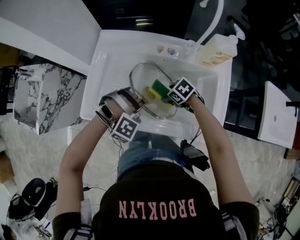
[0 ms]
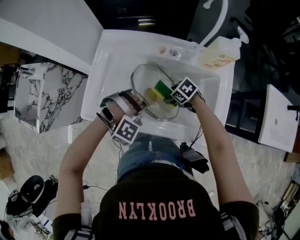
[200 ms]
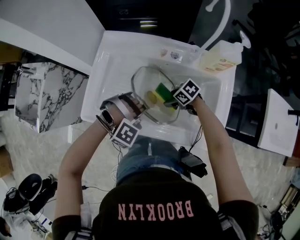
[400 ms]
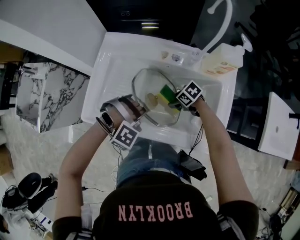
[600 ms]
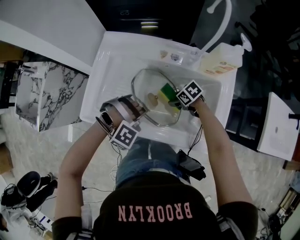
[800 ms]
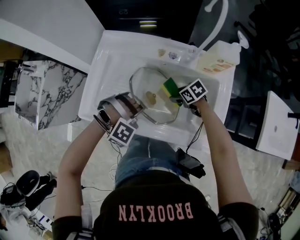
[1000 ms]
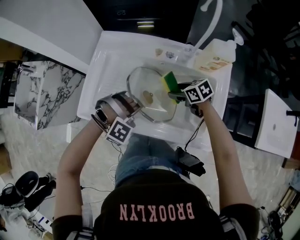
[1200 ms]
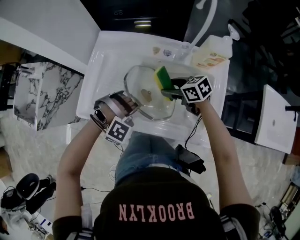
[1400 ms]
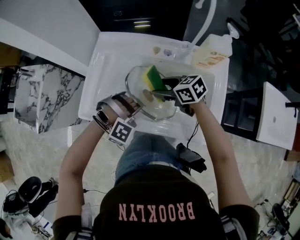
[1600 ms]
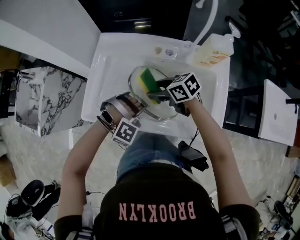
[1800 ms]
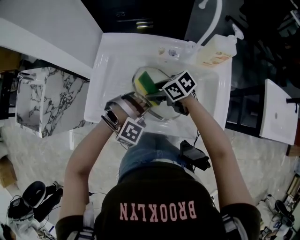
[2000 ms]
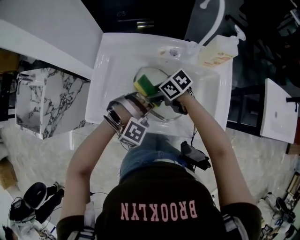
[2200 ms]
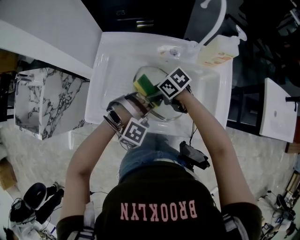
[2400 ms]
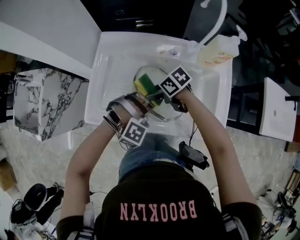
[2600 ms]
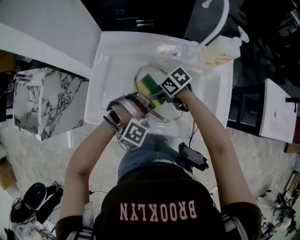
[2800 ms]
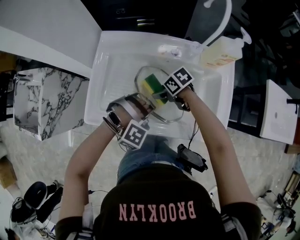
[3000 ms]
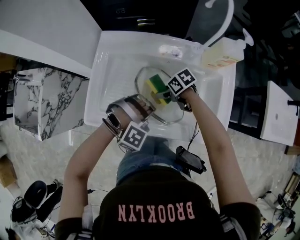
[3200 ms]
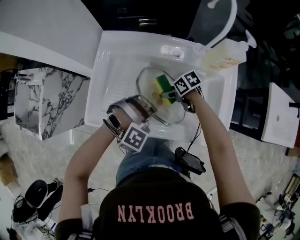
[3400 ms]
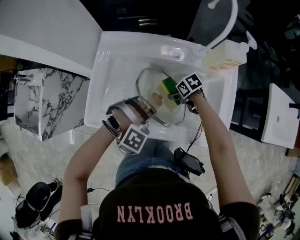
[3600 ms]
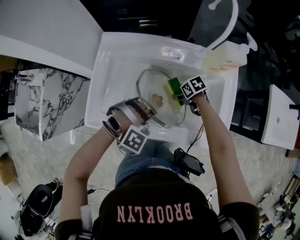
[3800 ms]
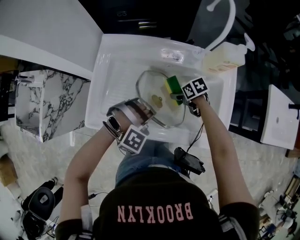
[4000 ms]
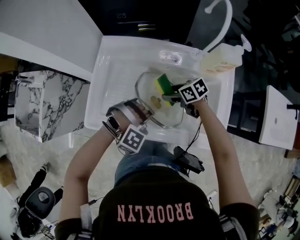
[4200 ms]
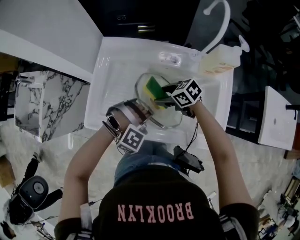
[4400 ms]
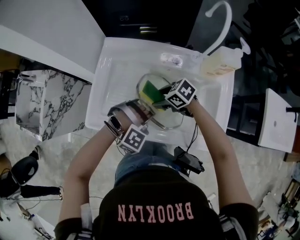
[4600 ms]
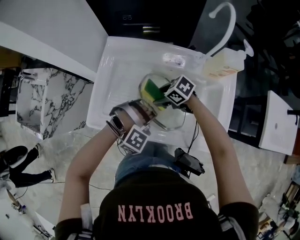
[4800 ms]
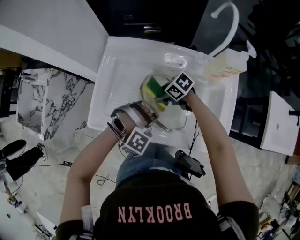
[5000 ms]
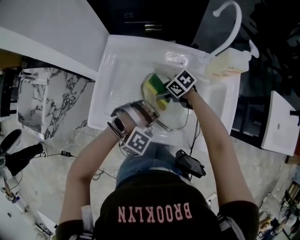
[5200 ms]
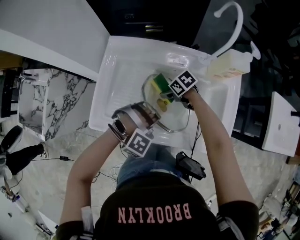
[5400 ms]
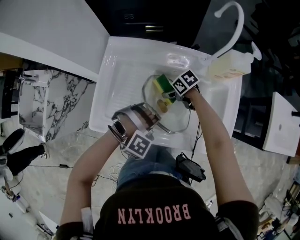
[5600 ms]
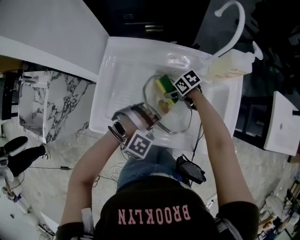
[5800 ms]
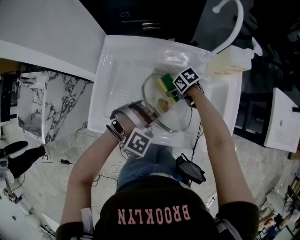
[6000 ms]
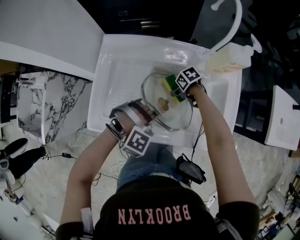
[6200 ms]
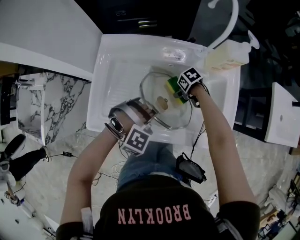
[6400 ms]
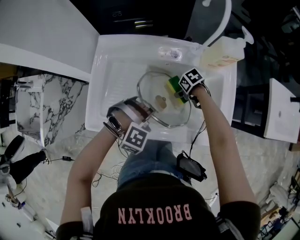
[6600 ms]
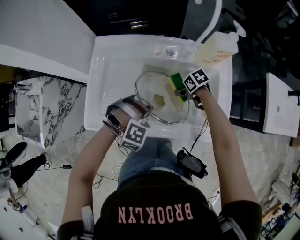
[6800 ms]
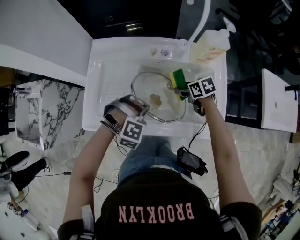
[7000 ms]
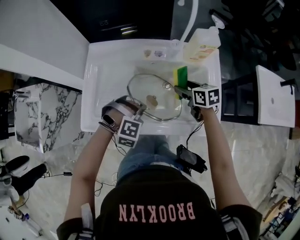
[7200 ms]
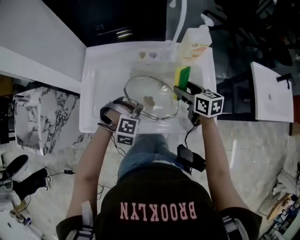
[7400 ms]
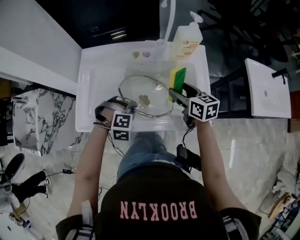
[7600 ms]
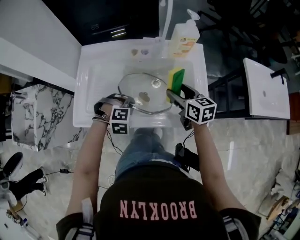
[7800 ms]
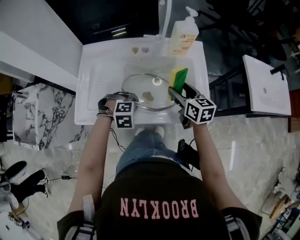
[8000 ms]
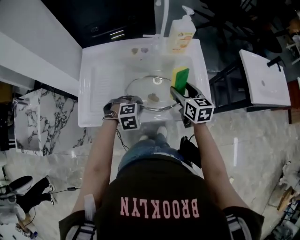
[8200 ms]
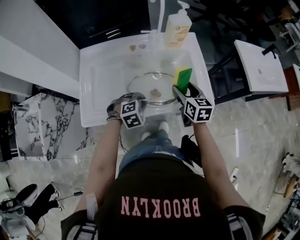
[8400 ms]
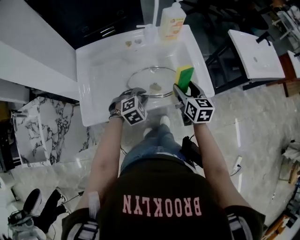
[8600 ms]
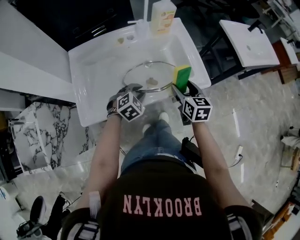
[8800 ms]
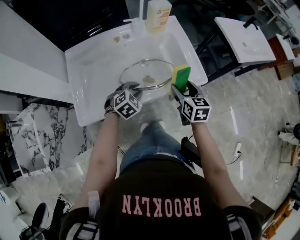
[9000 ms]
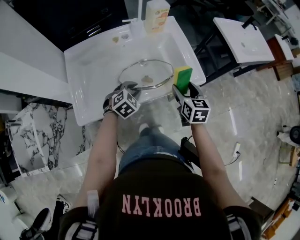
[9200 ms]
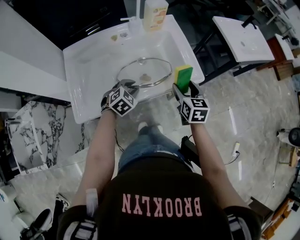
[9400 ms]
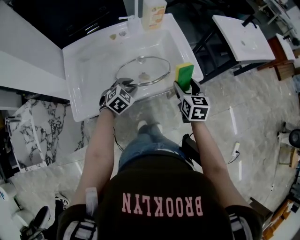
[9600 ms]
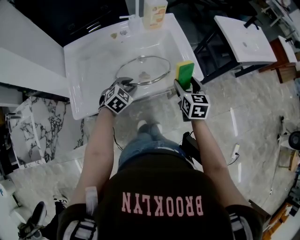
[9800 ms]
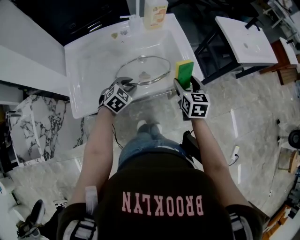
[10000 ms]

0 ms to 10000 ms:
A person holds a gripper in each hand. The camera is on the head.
0 ms to 1400 ms: The right gripper goes roughly 10 cm upward, and changes its angle by roughly 30 degrees.
1400 ms to 2800 ms: The right gripper moves roughly 10 cm, and swivels approximately 20 degrees.
2800 ms to 4200 ms: The right gripper moves approximately 10 cm downward and comes back.
4200 ms to 5800 ms: The right gripper moves downward, some 5 cm.
5800 ms to 7200 ms: The right gripper ends up about 20 cm from where it was, and rotates roughly 40 degrees.
7200 ms to 8600 ms: The right gripper changes place by about 20 cm, and turns by about 40 degrees.
8600 ms to 10000 ms: The right gripper changes place by roughly 10 cm.

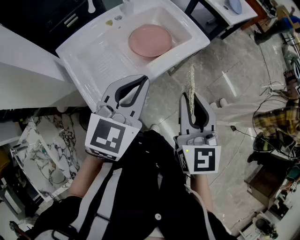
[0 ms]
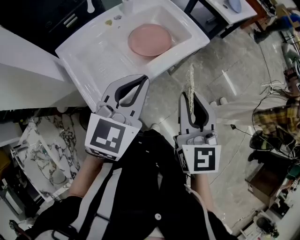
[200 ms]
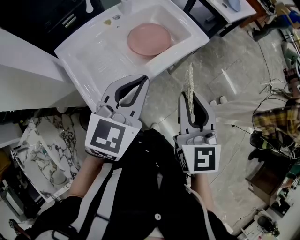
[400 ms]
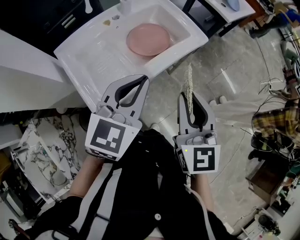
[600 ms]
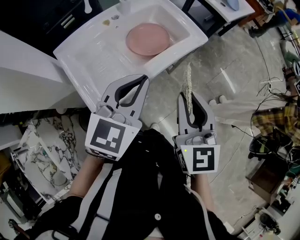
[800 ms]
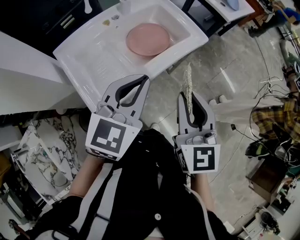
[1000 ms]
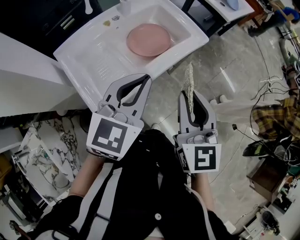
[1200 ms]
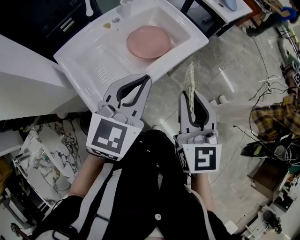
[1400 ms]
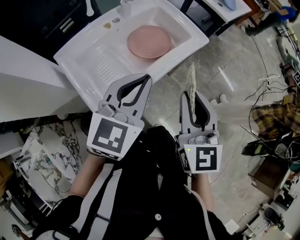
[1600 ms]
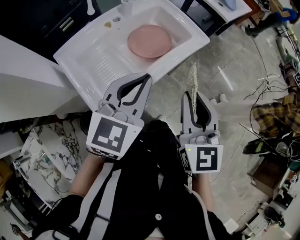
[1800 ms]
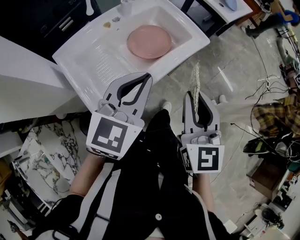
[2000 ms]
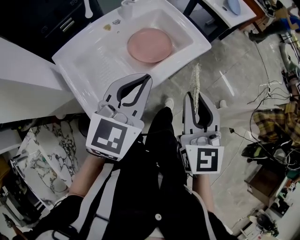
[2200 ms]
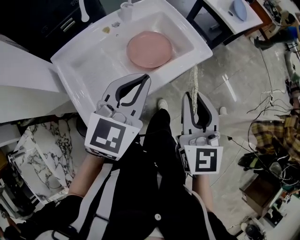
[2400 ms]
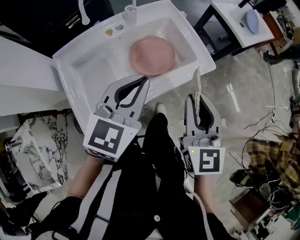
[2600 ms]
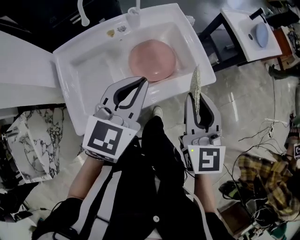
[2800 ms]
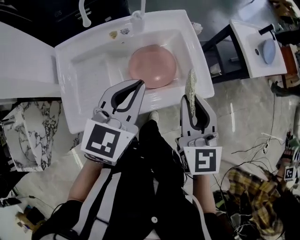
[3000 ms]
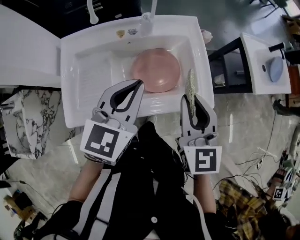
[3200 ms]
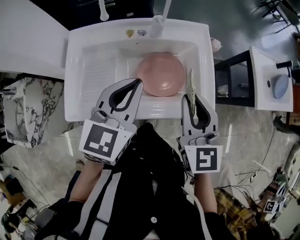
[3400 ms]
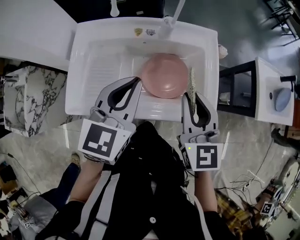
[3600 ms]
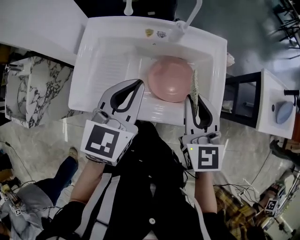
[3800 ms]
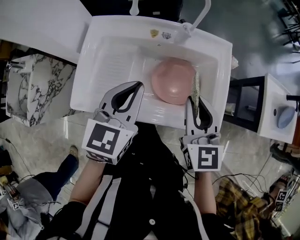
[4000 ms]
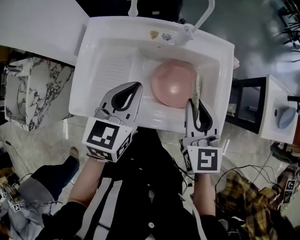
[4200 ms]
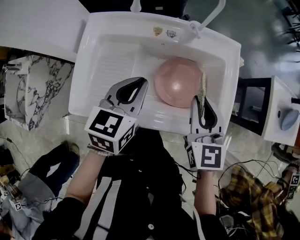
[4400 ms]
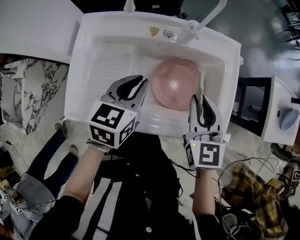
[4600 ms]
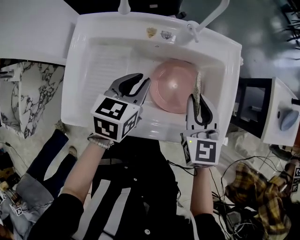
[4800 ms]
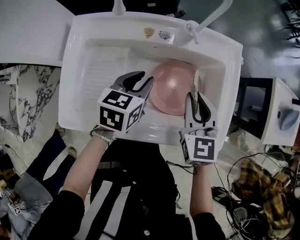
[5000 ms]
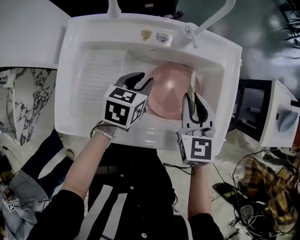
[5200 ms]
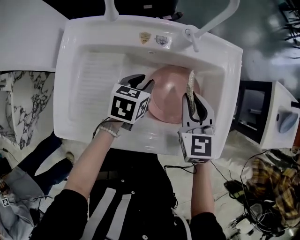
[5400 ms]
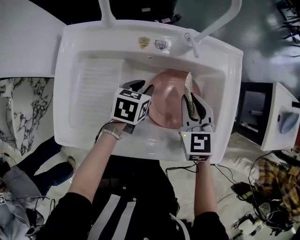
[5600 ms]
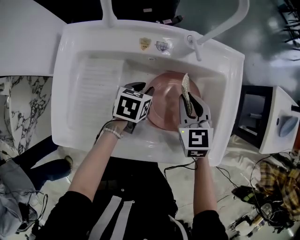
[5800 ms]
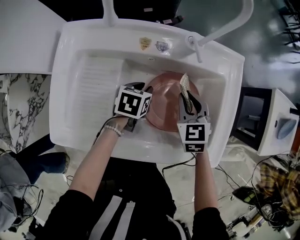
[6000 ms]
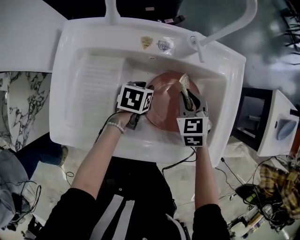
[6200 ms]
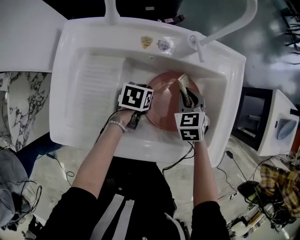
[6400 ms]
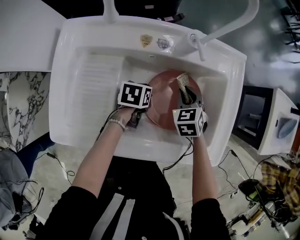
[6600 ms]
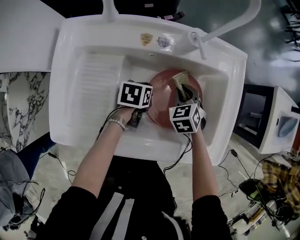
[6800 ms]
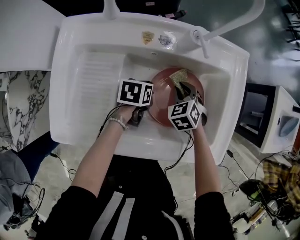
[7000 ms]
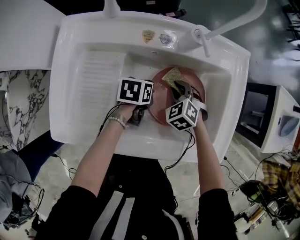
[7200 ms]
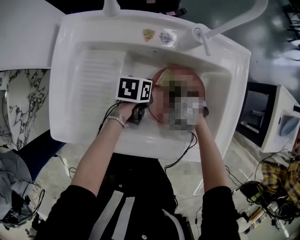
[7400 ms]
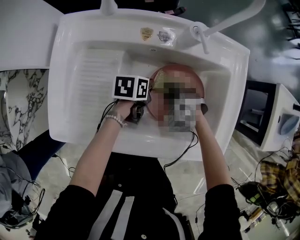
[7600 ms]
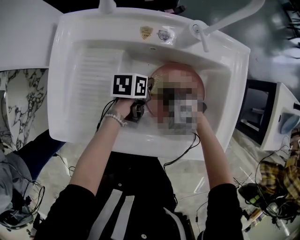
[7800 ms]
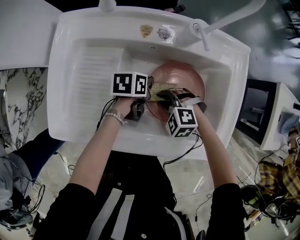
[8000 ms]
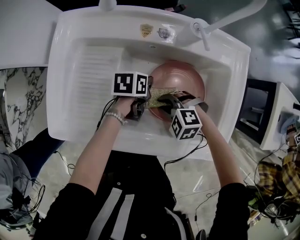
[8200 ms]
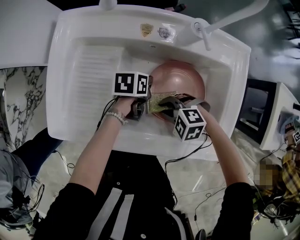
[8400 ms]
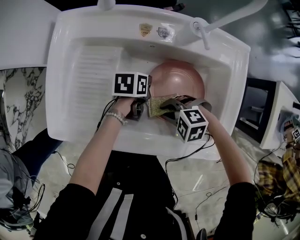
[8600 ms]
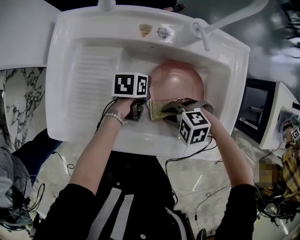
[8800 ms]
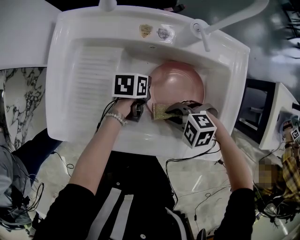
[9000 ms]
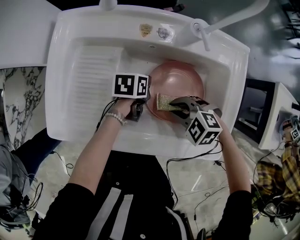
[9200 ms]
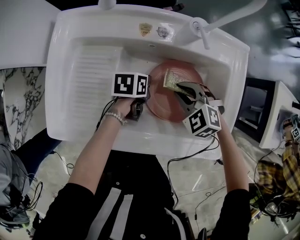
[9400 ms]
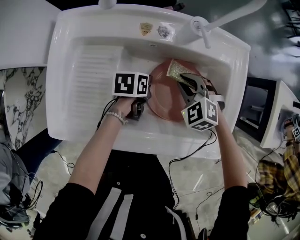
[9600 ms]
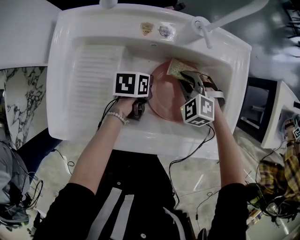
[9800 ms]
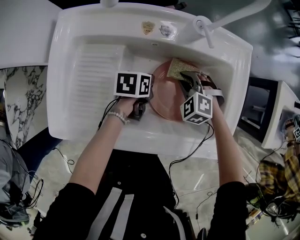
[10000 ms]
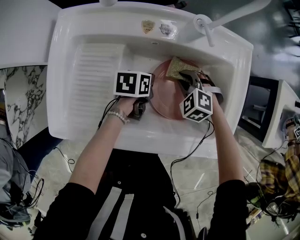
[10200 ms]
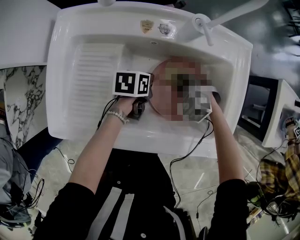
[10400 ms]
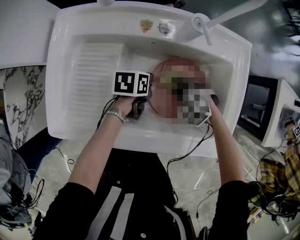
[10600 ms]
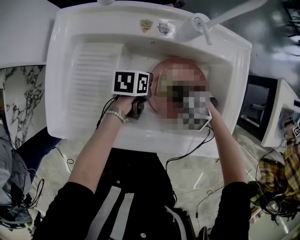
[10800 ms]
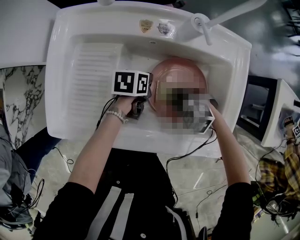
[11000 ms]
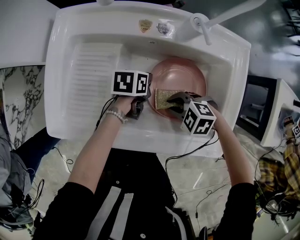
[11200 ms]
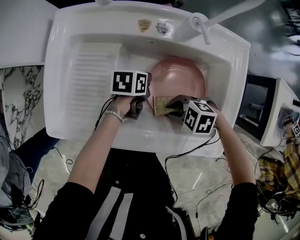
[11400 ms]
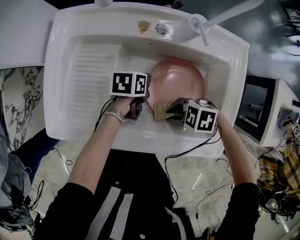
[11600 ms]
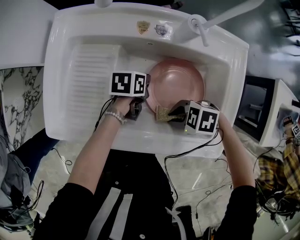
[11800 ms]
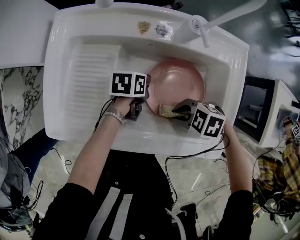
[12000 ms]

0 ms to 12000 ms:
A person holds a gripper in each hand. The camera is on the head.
0 ms to 1600 ms: The grippers make only small movements.
1600 ms to 3000 ms: The left gripper shifts by roughly 20 cm, and turns by about 30 degrees. Meanwhile the right gripper moves about 25 cm, and changes its angle by approximately 30 degrees.
3000 ms to 4400 ms: The right gripper shifts by approximately 15 cm, and swivels about 20 degrees. Meanwhile the left gripper shifts by roughly 15 cm, and swivels about 30 degrees.
4400 ms to 6000 ms: The right gripper heads downward and forward, covering some 20 cm, and rotates about 20 degrees; the left gripper shifts some 25 cm downward, turns by some 30 degrees, and opens up.
6000 ms to 7600 ms: The right gripper heads downward and to the left, covering about 10 cm, and rotates around the line of its fingers by about 40 degrees, counterclockwise from behind.
7600 ms to 9000 ms: The right gripper shifts by roughly 10 cm, and turns by about 30 degrees.
9000 ms to 10400 ms: The right gripper ends up approximately 15 cm from where it was, and turns by roughly 30 degrees.
10400 ms to 12000 ms: The right gripper changes place by roughly 15 cm, and turns by approximately 40 degrees.

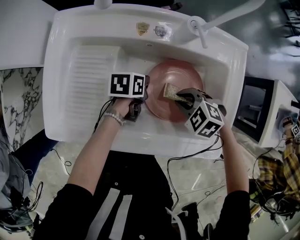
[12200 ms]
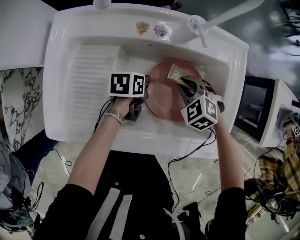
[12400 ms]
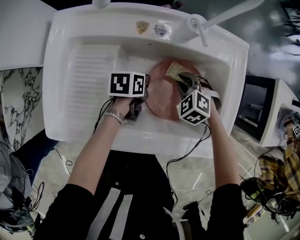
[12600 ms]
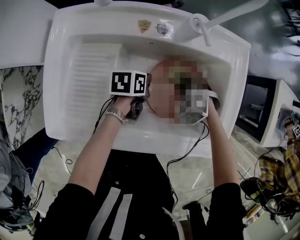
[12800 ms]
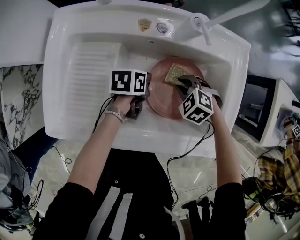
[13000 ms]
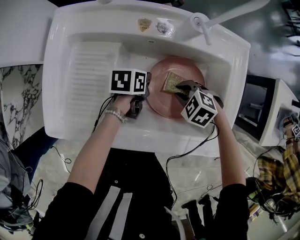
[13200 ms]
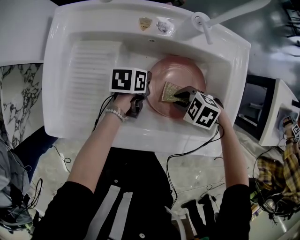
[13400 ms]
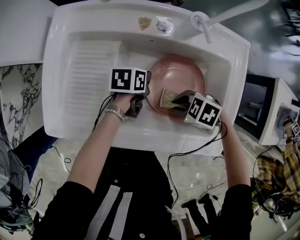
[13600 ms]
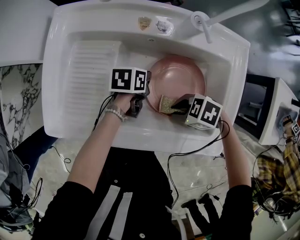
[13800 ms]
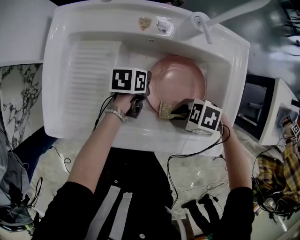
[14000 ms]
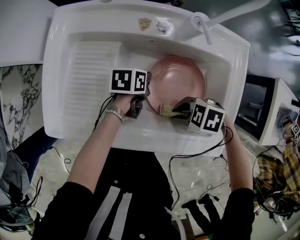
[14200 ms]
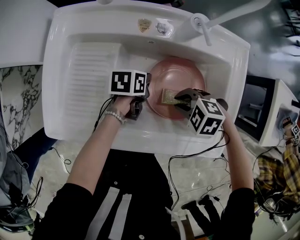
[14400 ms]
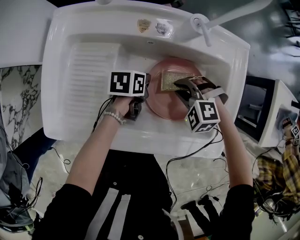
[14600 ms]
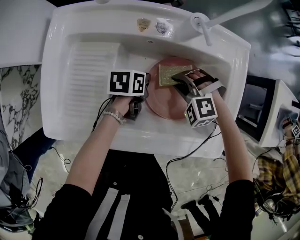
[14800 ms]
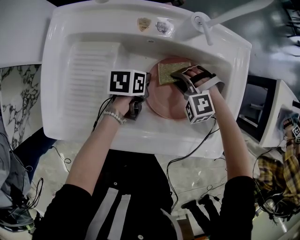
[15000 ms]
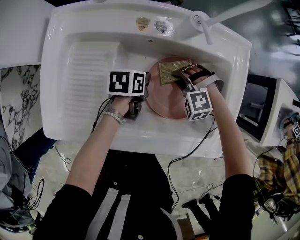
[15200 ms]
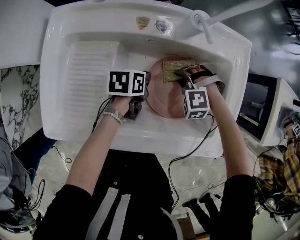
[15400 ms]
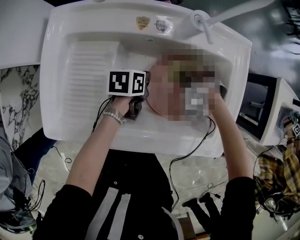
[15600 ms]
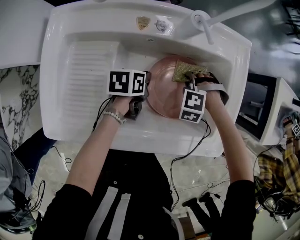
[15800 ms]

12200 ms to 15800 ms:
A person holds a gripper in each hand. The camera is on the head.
12200 ms to 14000 ms: The right gripper moves approximately 10 cm, and swivels some 30 degrees.
14000 ms to 15800 ms: The right gripper ends up some 15 cm from where it was, and rotates approximately 60 degrees.
